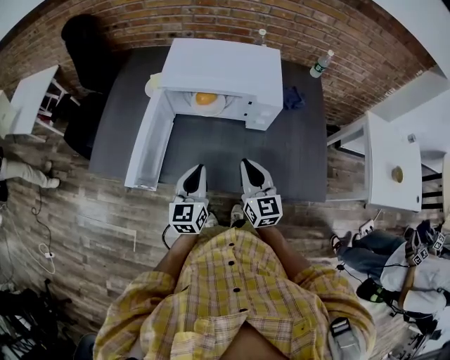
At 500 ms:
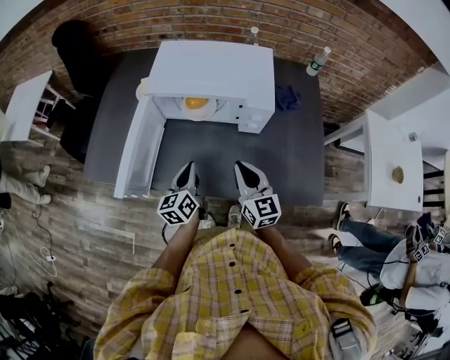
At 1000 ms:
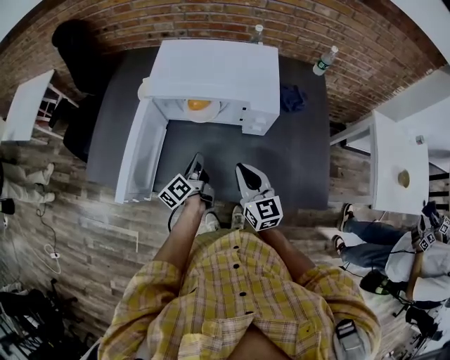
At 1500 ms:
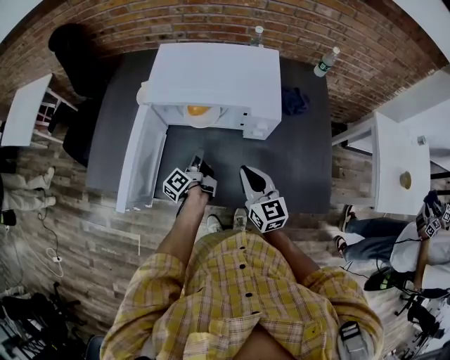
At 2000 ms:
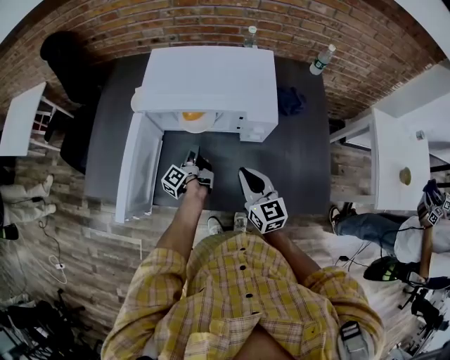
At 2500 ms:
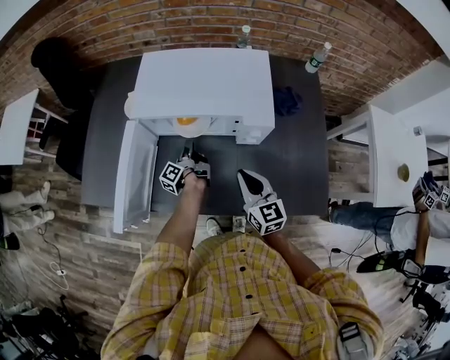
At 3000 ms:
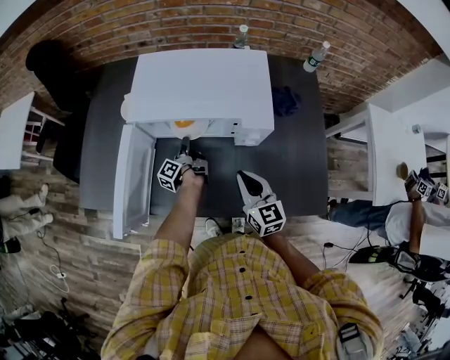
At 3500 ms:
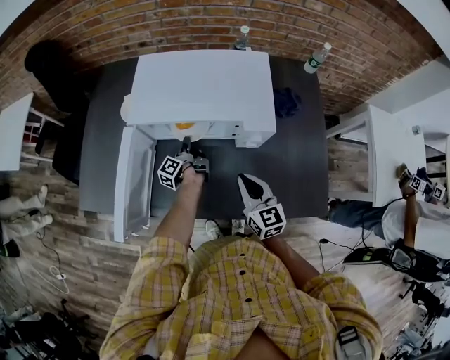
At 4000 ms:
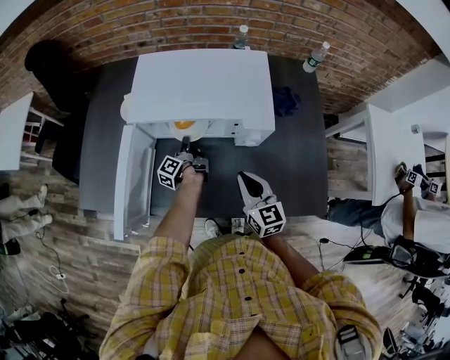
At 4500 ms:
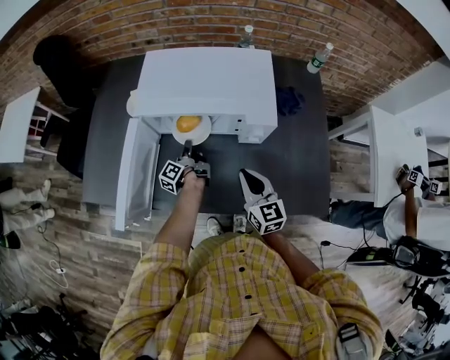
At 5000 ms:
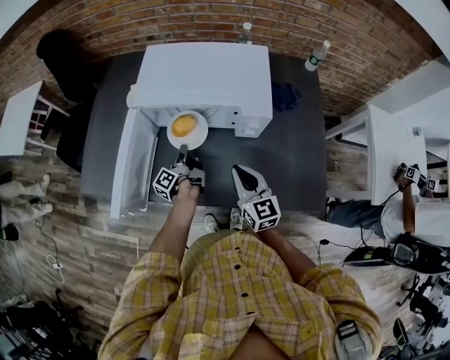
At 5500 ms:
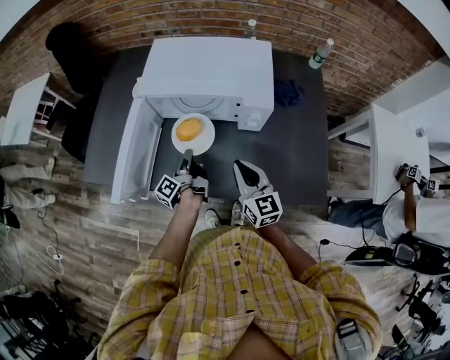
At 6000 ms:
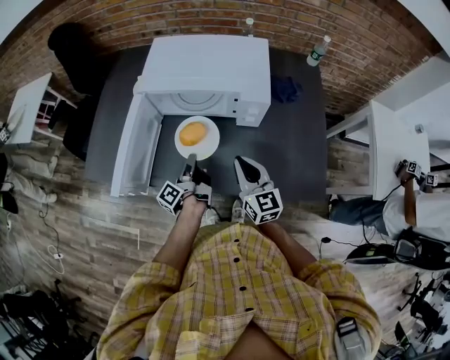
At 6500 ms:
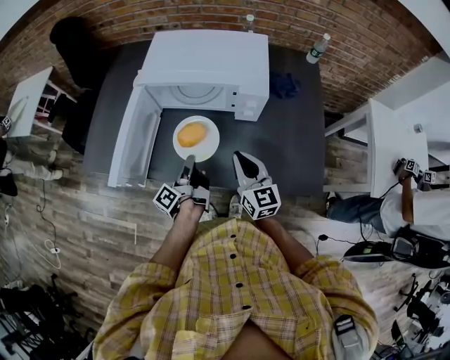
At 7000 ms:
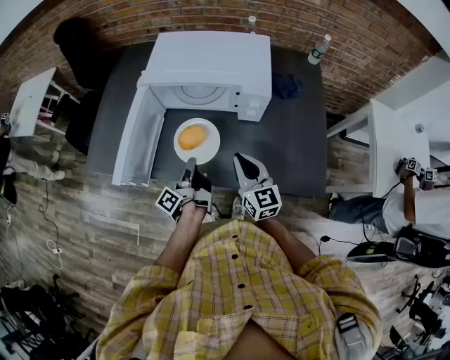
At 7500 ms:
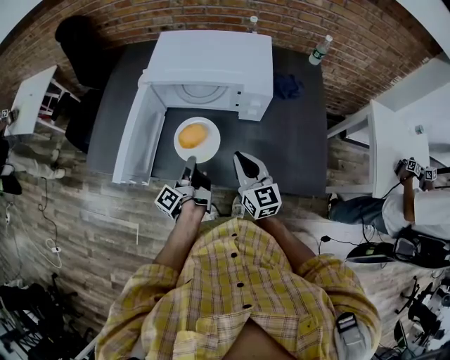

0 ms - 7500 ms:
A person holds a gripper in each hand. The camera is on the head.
0 ms - 2000 ms: The right gripper is displaced forward by about 5 cm. The left gripper travels forward and downward by about 25 cm, twists some 80 degrees counterclockwise, seen from behind, and opens its fingers.
2000 ms - 4000 ms: The left gripper moves forward, approximately 5 cm.
4000 ms - 5500 ms: The right gripper ends up about 5 cm from where it was. The left gripper goes about 15 cm backward and upward.
5500 ms - 7500 ms: The left gripper heads backward and upward, covering roughly 10 cm.

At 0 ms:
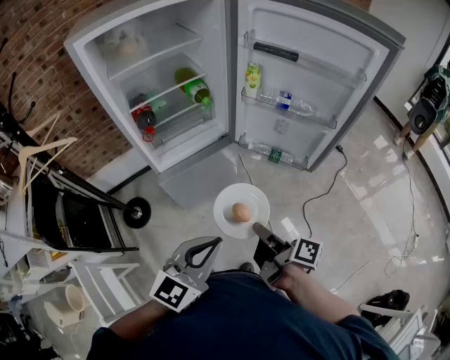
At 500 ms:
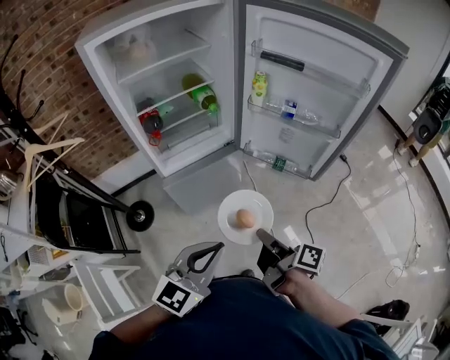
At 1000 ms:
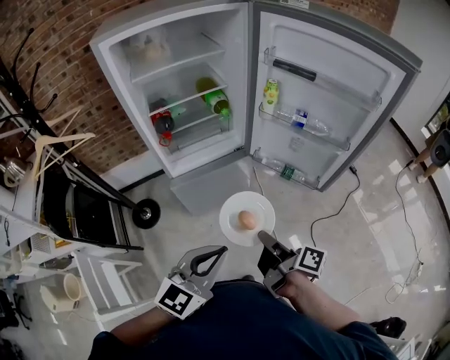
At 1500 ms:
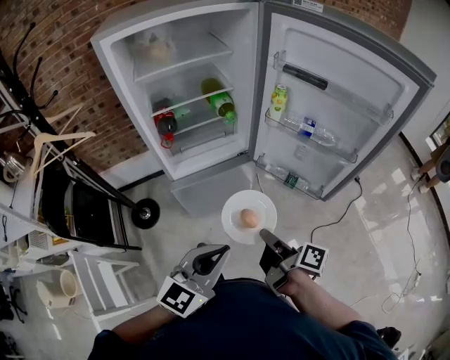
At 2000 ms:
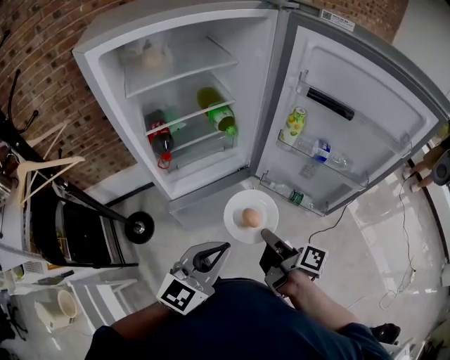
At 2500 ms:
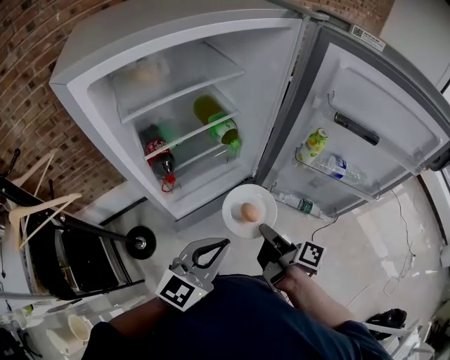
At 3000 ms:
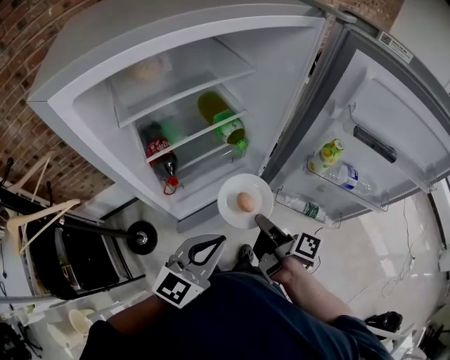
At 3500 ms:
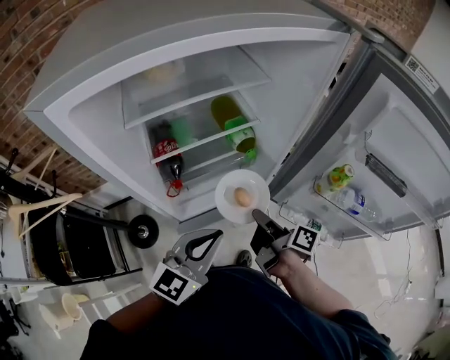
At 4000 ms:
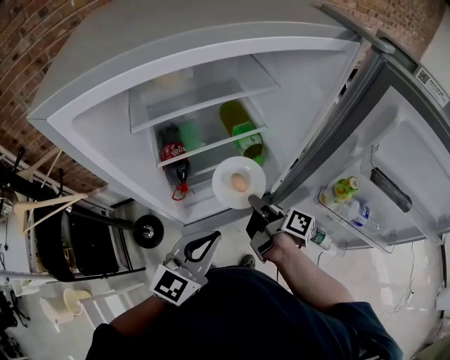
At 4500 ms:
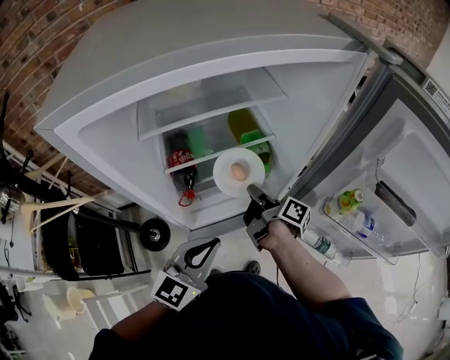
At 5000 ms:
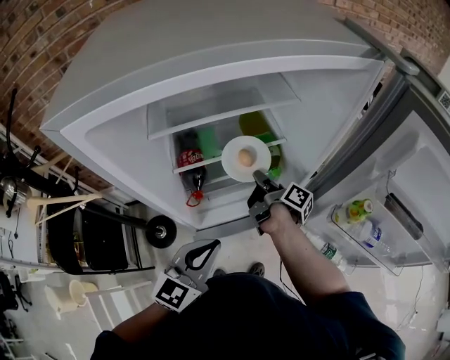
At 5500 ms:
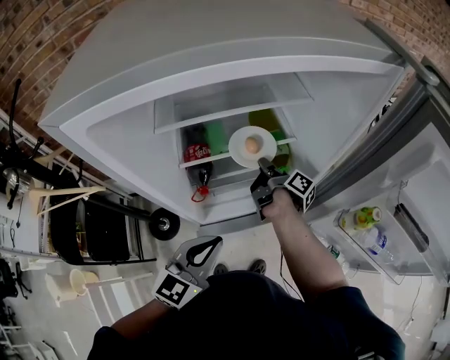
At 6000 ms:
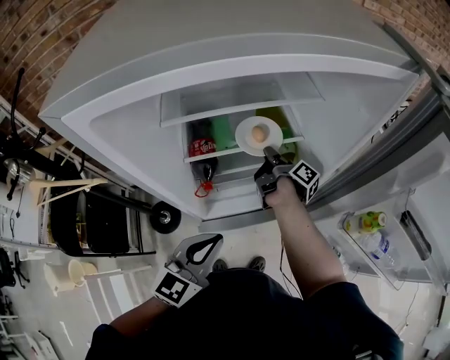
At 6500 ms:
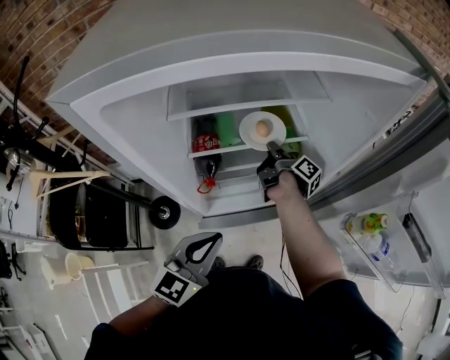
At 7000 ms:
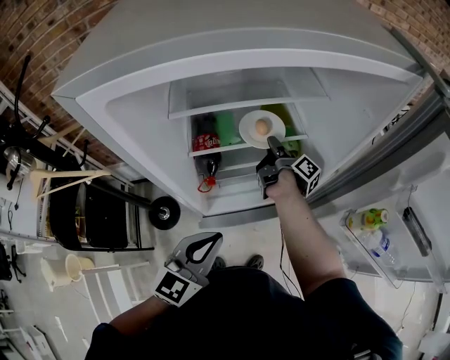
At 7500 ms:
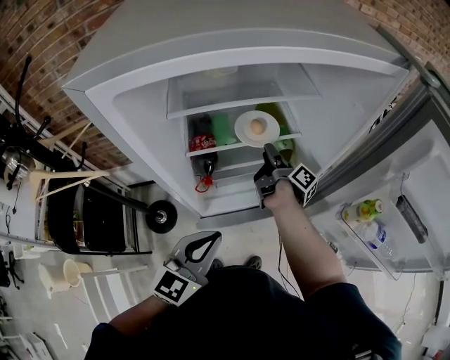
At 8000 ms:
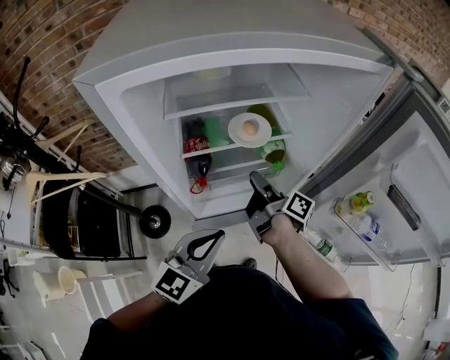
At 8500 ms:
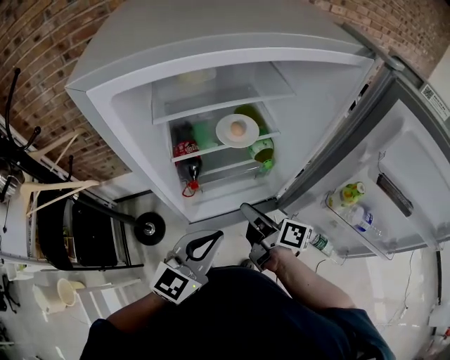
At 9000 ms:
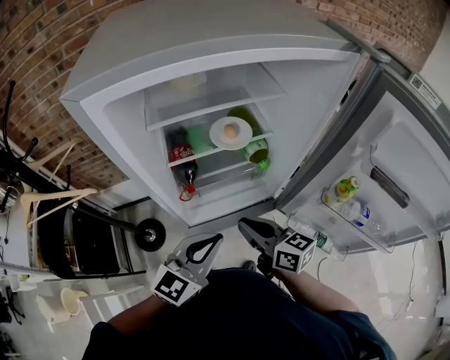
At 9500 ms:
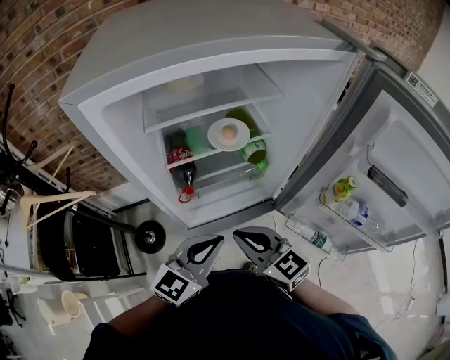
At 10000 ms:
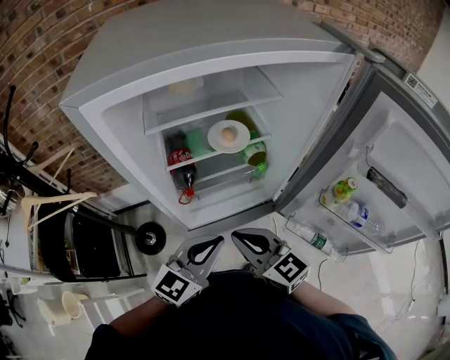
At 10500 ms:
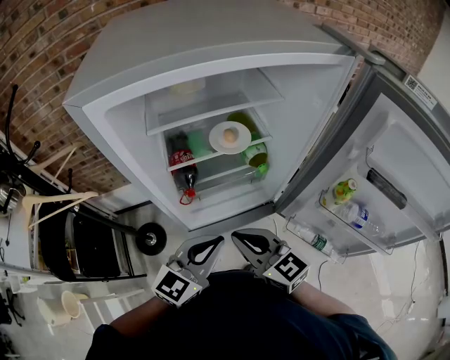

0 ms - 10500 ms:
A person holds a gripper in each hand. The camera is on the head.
0 ms - 2000 ms: The left gripper shifts by about 15 cm.
2000 ms - 4000 ms: The left gripper changes place by about 25 cm.
4000 ms - 6500 ms: The left gripper ends up roughly 5 cm from where it was.

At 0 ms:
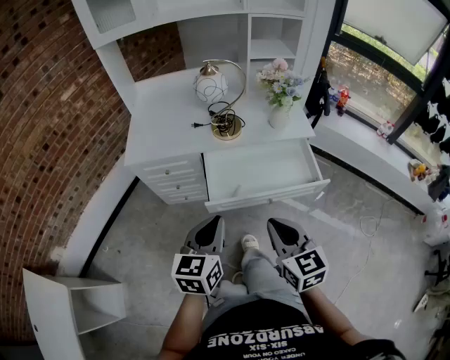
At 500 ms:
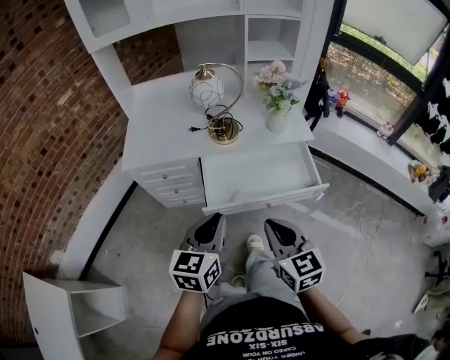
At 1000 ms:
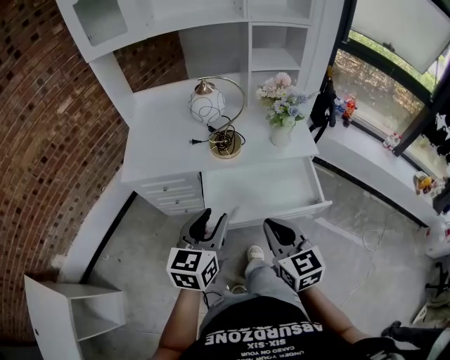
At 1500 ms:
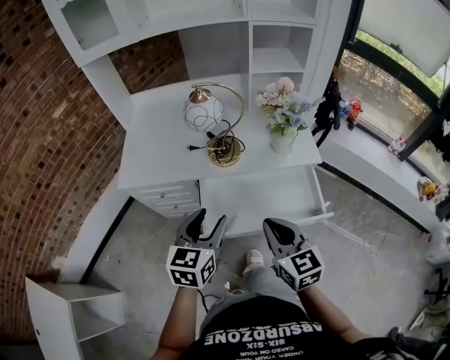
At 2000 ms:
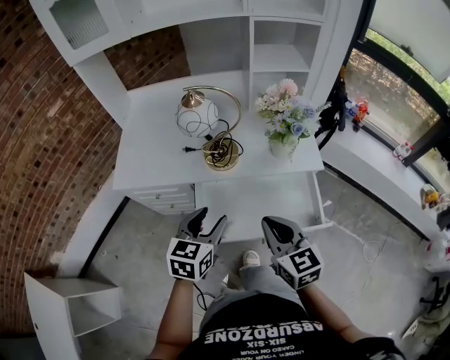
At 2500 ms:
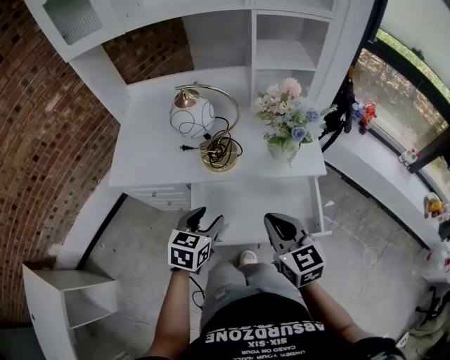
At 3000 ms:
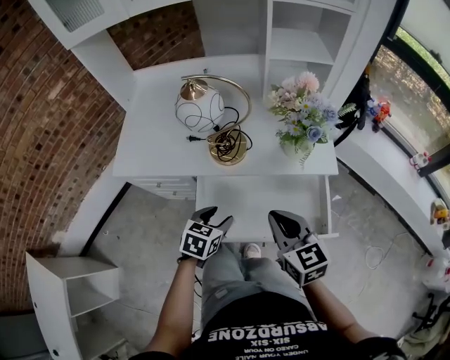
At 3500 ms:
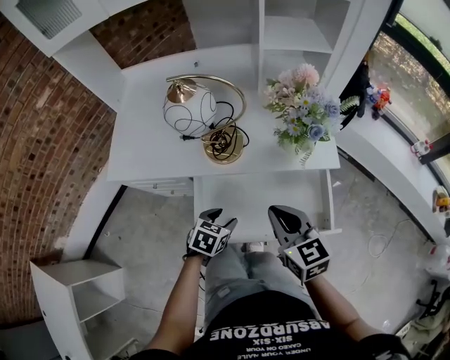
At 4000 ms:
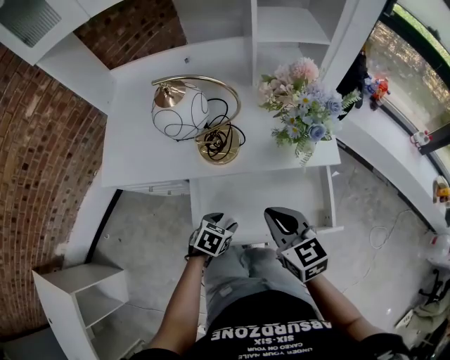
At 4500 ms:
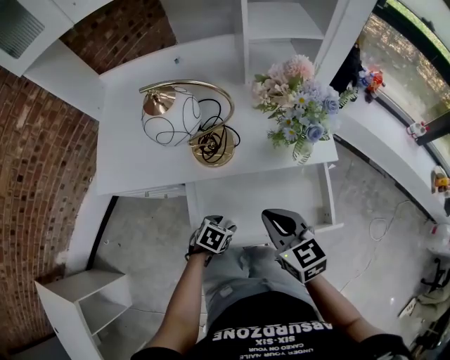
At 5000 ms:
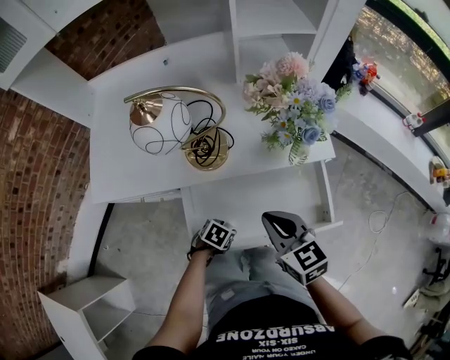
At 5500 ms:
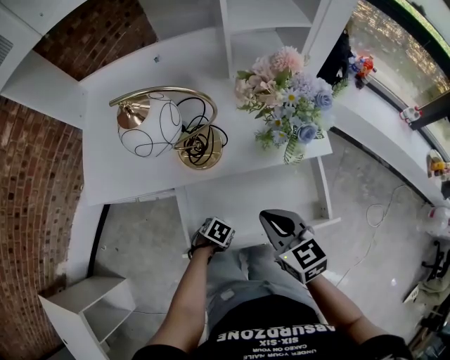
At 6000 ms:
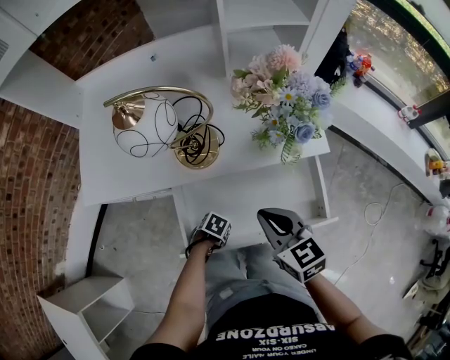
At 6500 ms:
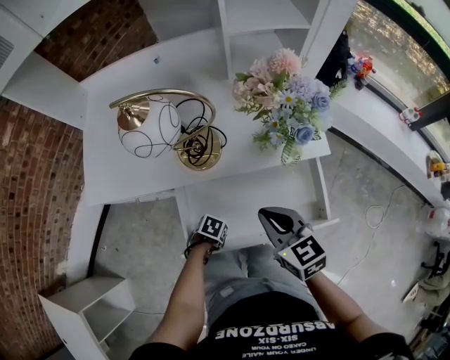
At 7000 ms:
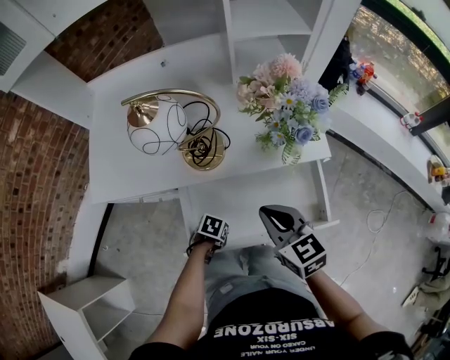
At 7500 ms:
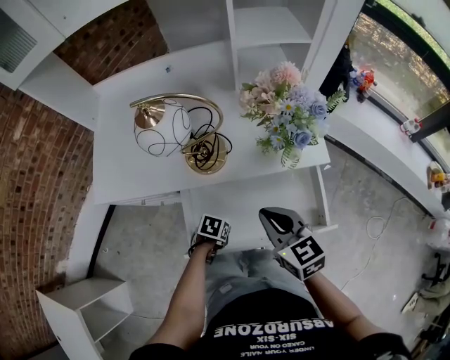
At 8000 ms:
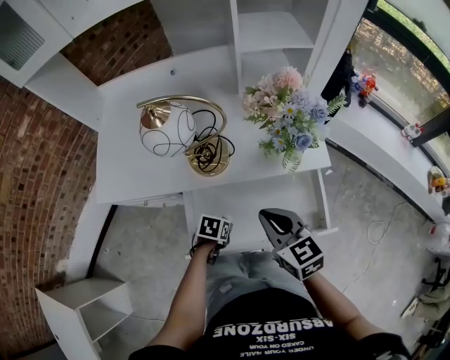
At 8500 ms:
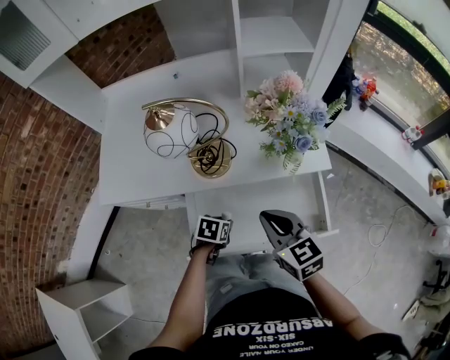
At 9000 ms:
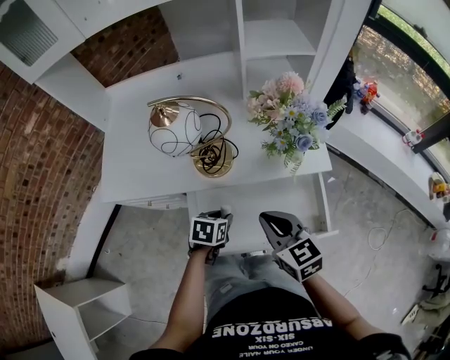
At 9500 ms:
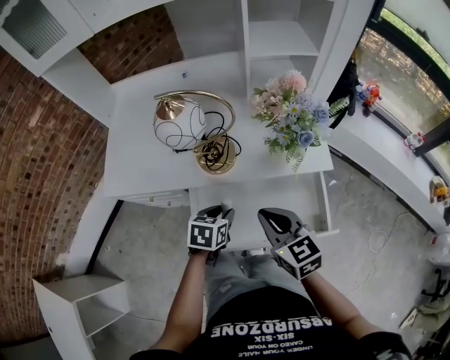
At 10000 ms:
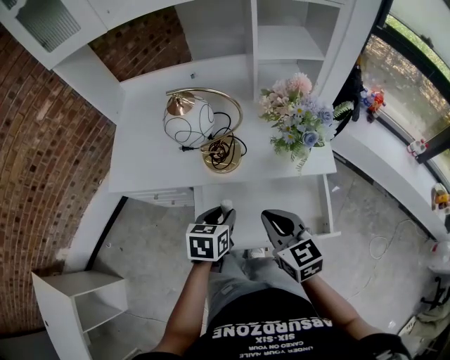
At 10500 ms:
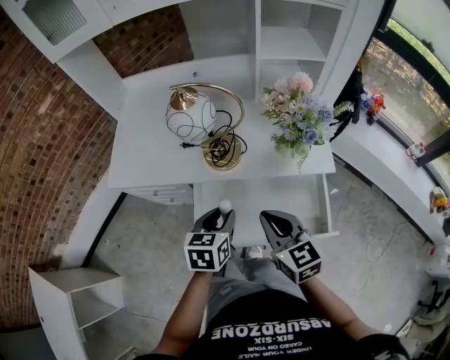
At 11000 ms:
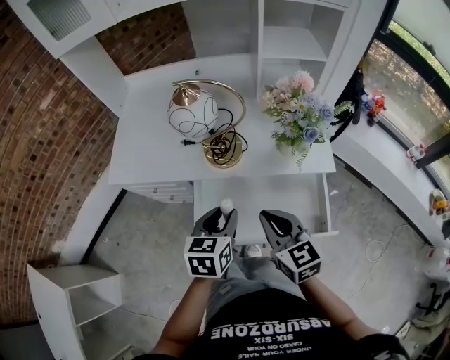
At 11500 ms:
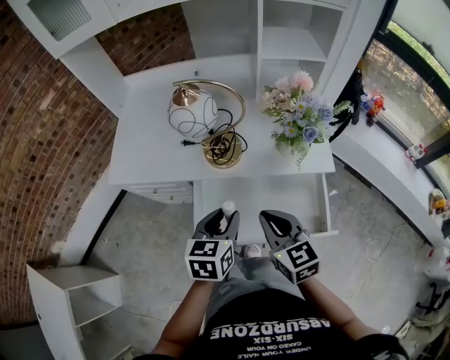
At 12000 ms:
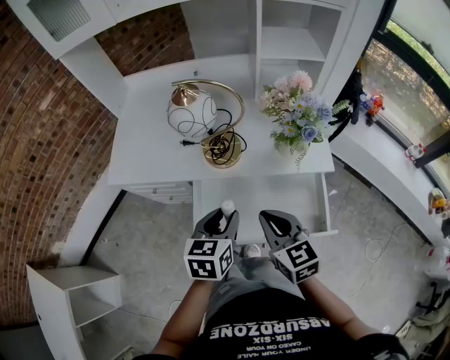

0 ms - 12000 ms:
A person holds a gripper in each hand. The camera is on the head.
0 ms - 2000 ms: The grippers both shift forward by some 20 cm. The left gripper opens its fingers.
2000 ms - 4000 ms: The left gripper is displaced downward by approximately 25 cm, and angles its fingers downward, by some 30 degrees; the right gripper is displaced forward and downward by some 10 cm.
4000 ms - 6000 ms: The left gripper travels downward by roughly 15 cm, and changes its angle by some 30 degrees.
6000 ms - 8000 ms: The left gripper is displaced upward by some 10 cm, and rotates about 20 degrees.
8000 ms - 10000 ms: The left gripper goes some 20 cm upward, and rotates approximately 30 degrees.
10000 ms - 12000 ms: The left gripper heads upward, covering some 5 cm.
